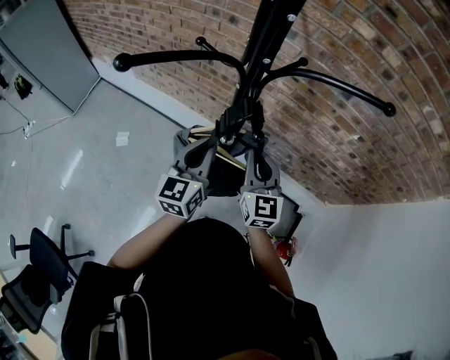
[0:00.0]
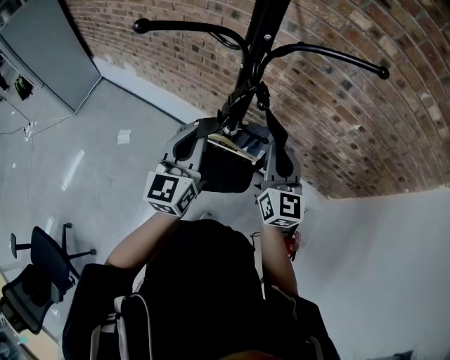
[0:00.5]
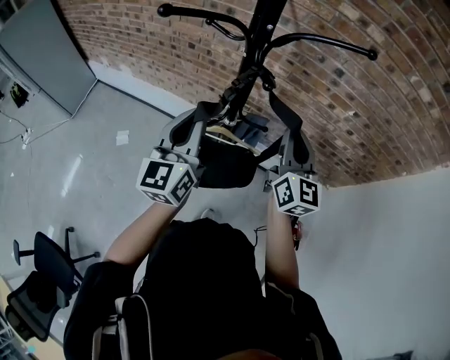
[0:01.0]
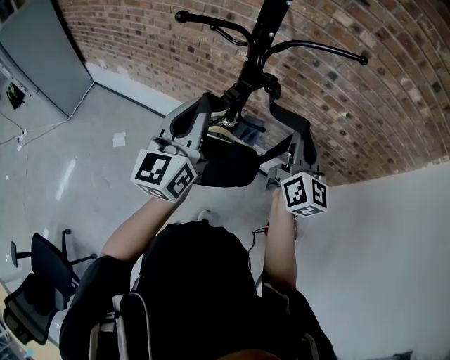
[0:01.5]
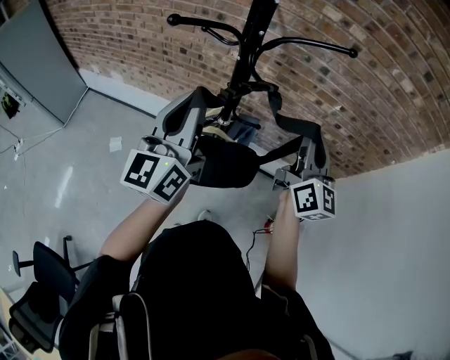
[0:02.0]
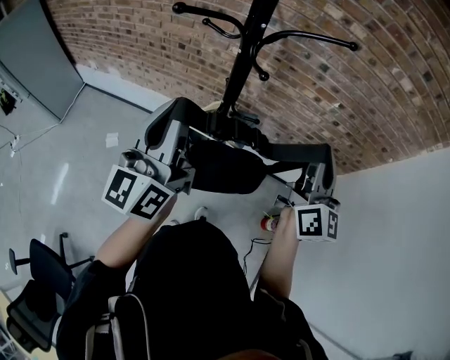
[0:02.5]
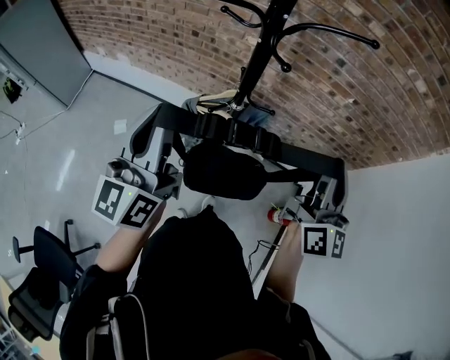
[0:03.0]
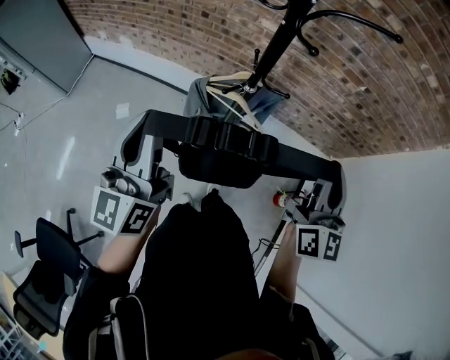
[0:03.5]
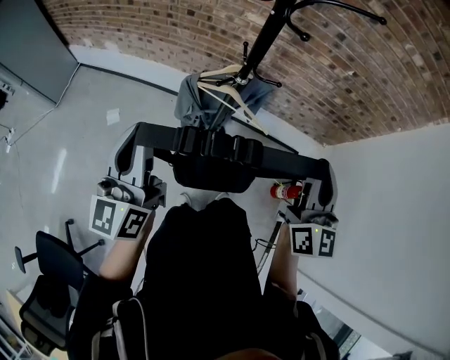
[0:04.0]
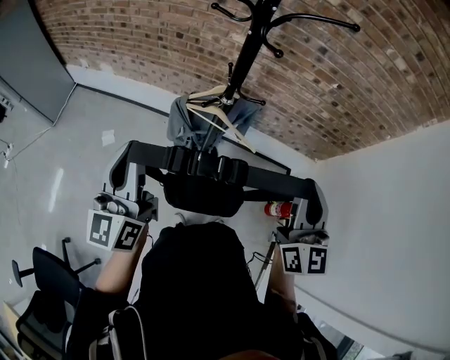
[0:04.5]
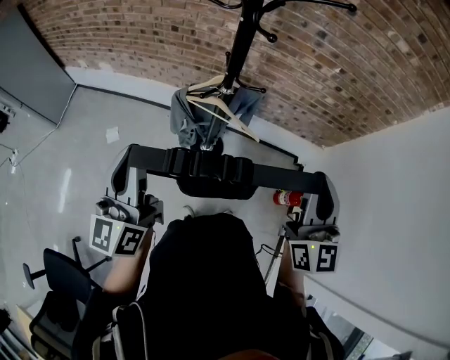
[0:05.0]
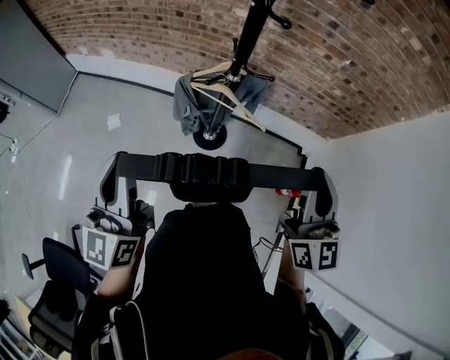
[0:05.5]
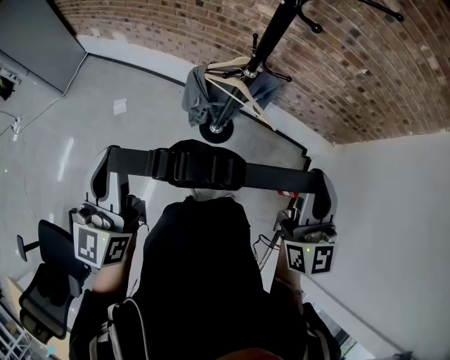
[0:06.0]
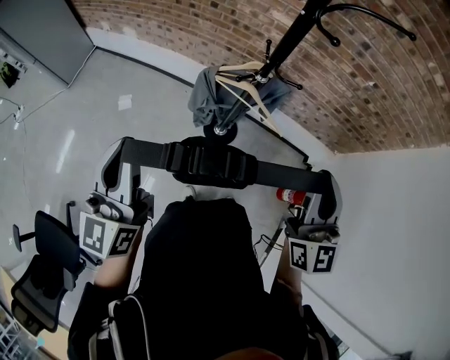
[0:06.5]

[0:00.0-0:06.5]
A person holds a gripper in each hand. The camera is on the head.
0:00.0 to 0:02.0: The right gripper is displaced upward, to the right and backward by roughly 20 cm, and changes its angle by approximately 30 degrees. The left gripper travels upward and backward by about 20 cm, and swivels about 20 degrees.
0:02.0 to 0:04.5: The left gripper heads backward, to the left and downward, covering some 20 cm; the right gripper is displaced backward by some 20 cm.
0:04.5 to 0:06.5: The right gripper shifts by roughly 5 cm. Meanwhile the left gripper shifts by some 5 cm.

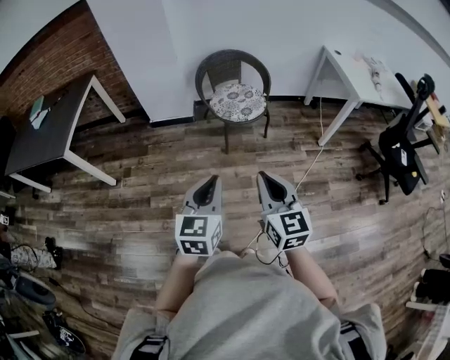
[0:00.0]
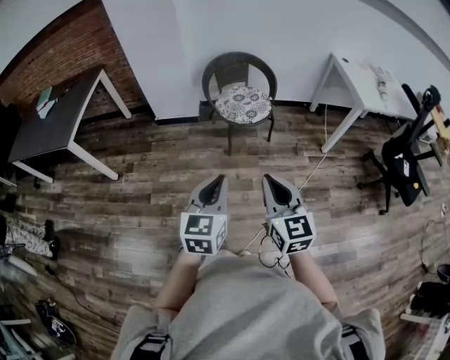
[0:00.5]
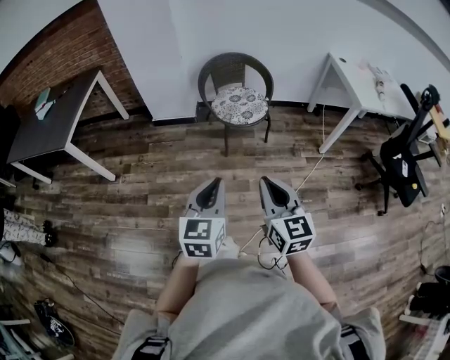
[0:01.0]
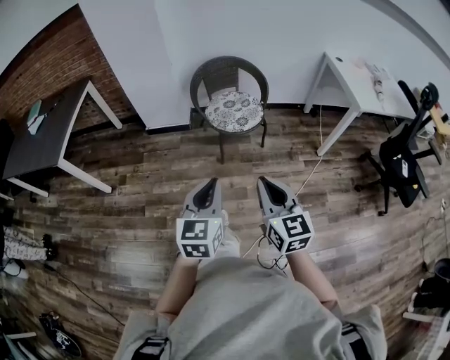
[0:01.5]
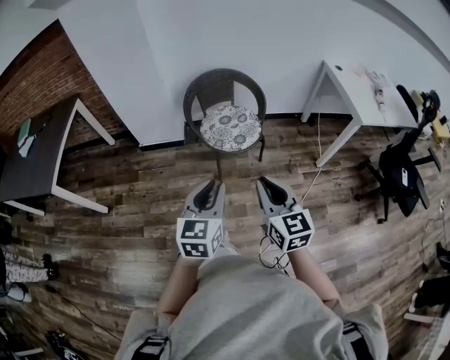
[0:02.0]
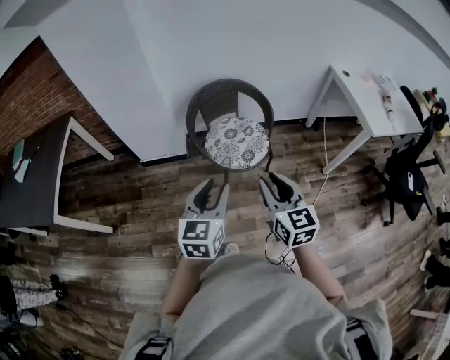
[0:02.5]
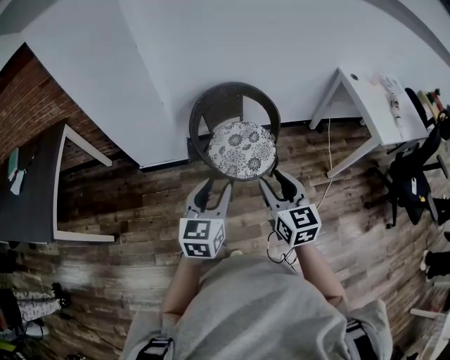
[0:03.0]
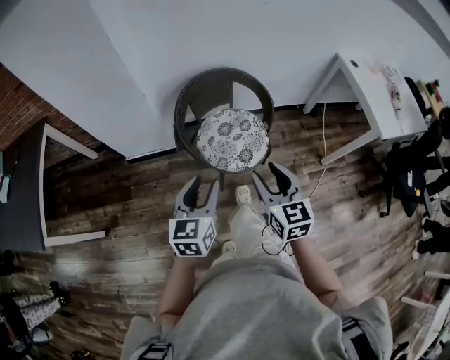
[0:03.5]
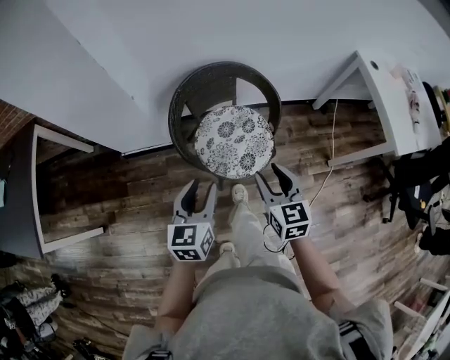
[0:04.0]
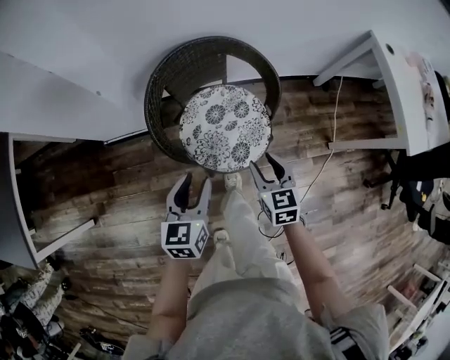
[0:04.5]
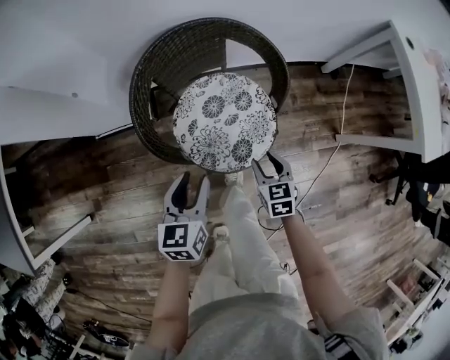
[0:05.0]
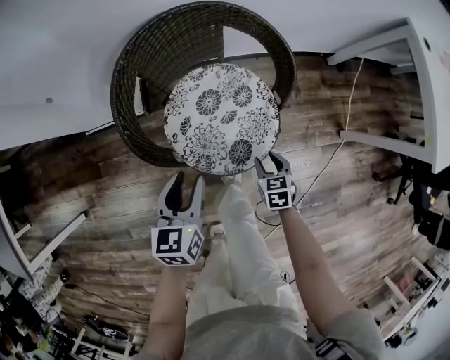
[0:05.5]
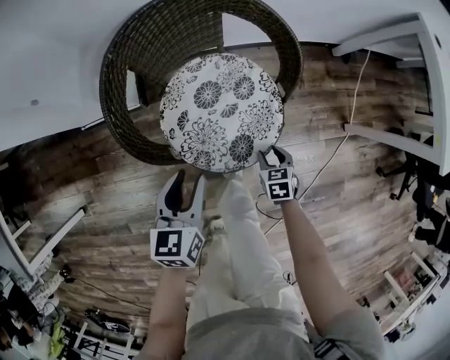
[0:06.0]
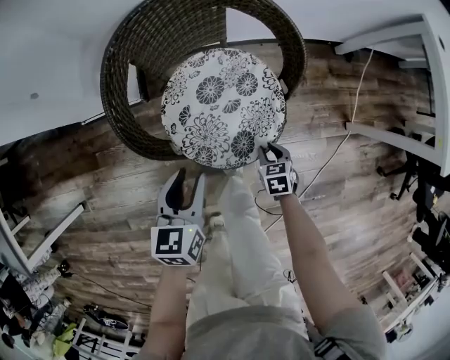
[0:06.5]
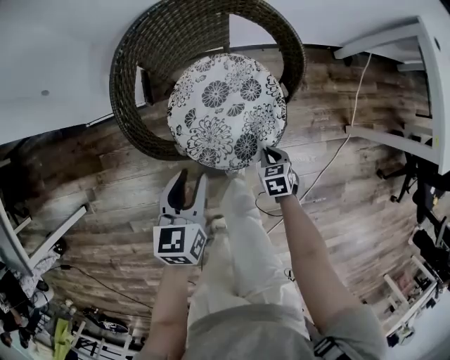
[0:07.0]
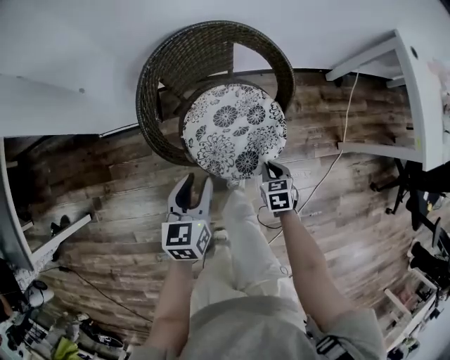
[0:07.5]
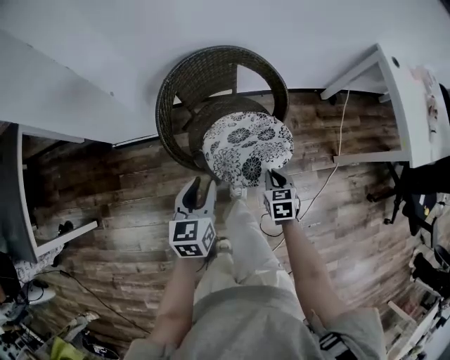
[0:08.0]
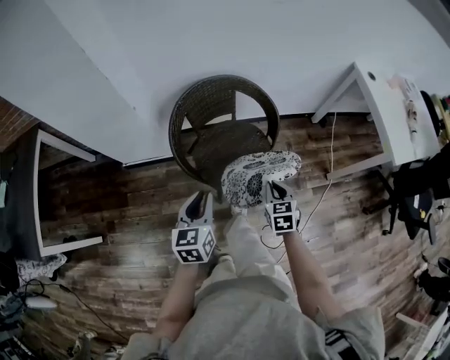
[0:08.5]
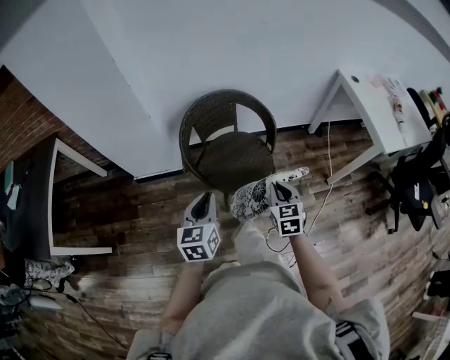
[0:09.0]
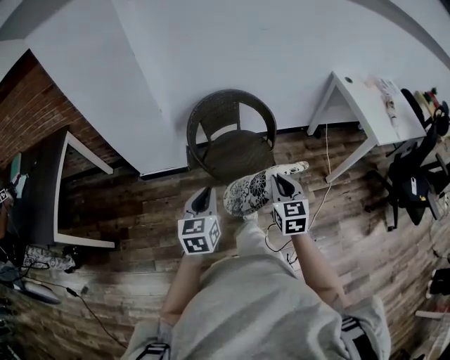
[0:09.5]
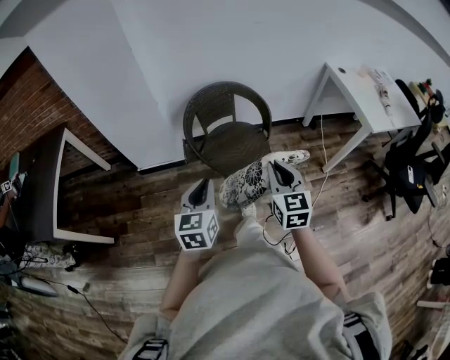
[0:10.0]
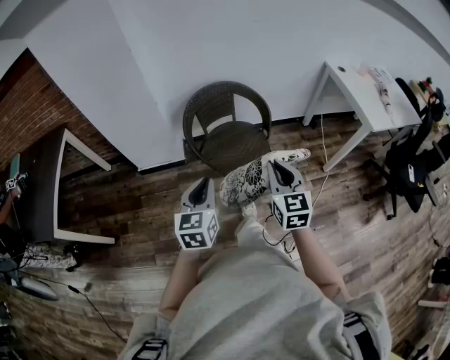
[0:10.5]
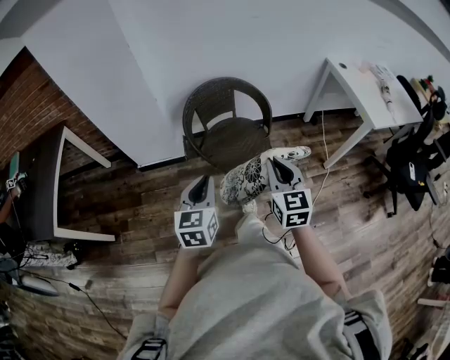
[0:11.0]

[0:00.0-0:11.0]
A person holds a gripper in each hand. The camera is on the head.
0:00.0 to 0:02.0: Both grippers travel together forward, some 20 cm.
0:02.0 to 0:03.5: The grippers both shift forward by some 30 cm. The right gripper opens its fingers. The left gripper opens up.
0:03.5 to 0:05.5: The left gripper is displaced downward and forward by approximately 35 cm. The right gripper heads downward, covering about 50 cm, and points its fingers about 40 degrees further downward.
0:05.5 to 0:07.5: The left gripper changes place by some 5 cm; the right gripper is displaced upward by roughly 5 cm, and closes.
0:07.5 to 0:09.0: The grippers both shift upward and backward by roughly 30 cm. The left gripper closes, while the right gripper turns by approximately 30 degrees.
0:09.0 to 0:11.0: The left gripper shifts roughly 15 cm backward and upward. Meanwhile the right gripper shifts approximately 20 cm upward and backward.

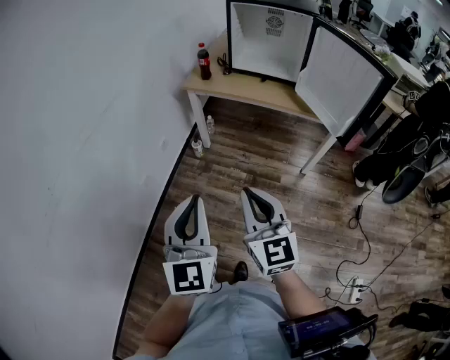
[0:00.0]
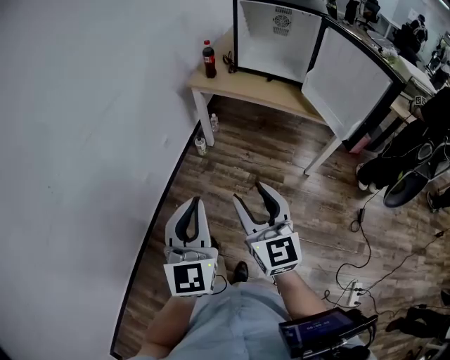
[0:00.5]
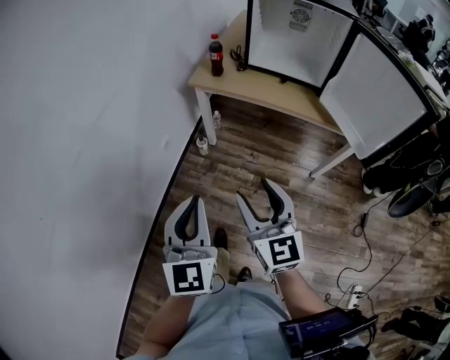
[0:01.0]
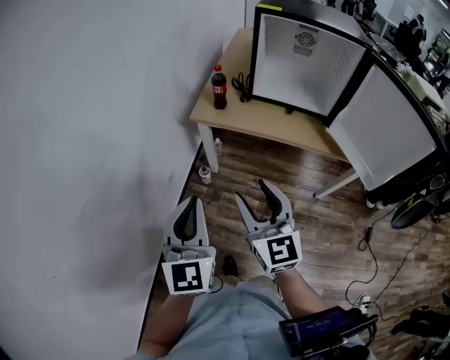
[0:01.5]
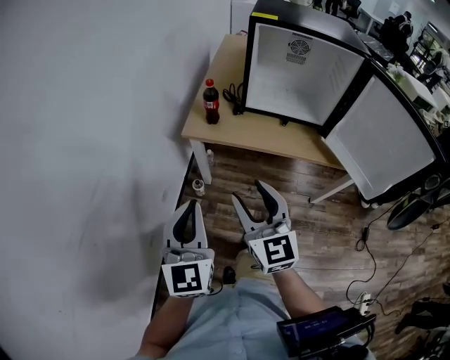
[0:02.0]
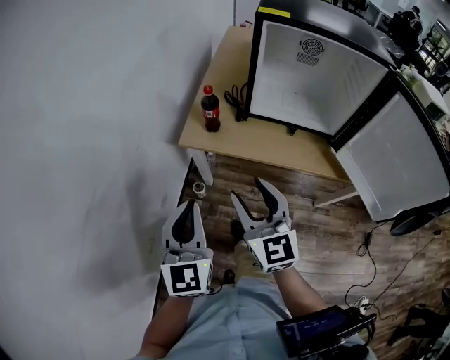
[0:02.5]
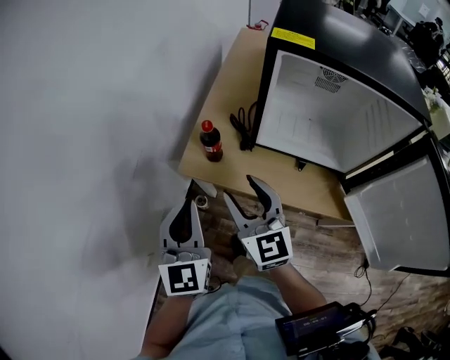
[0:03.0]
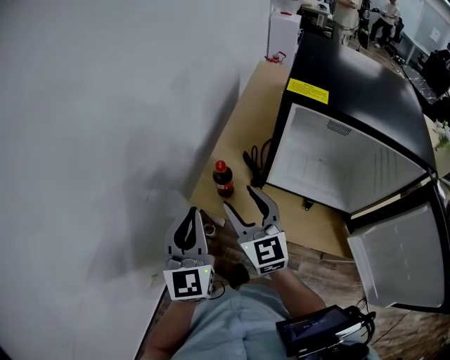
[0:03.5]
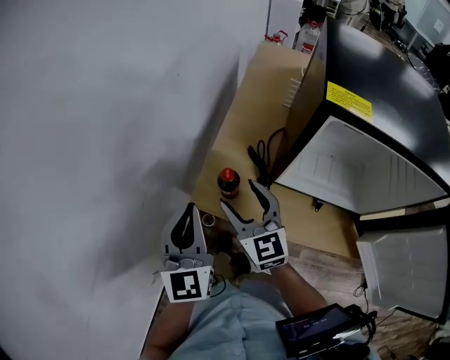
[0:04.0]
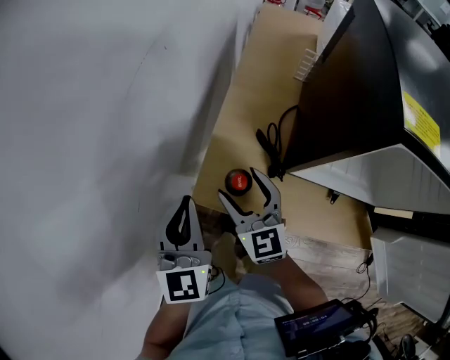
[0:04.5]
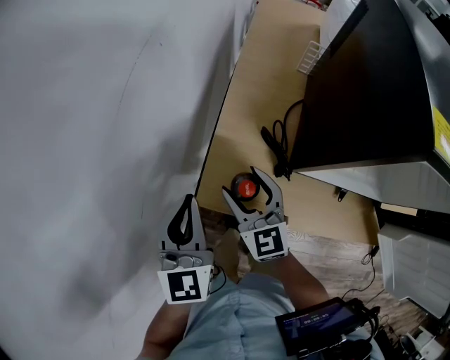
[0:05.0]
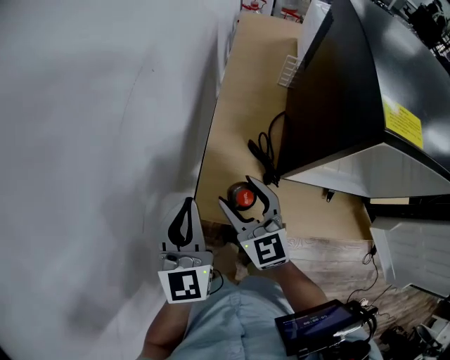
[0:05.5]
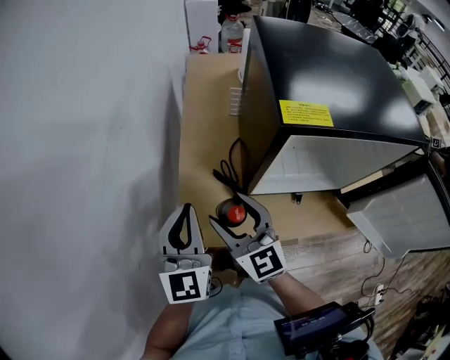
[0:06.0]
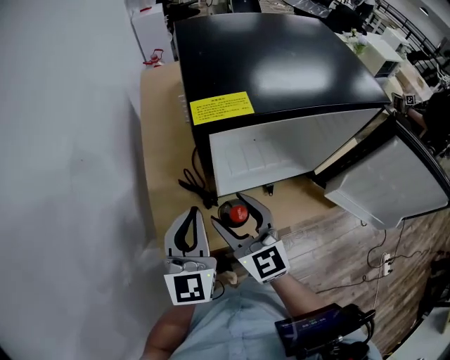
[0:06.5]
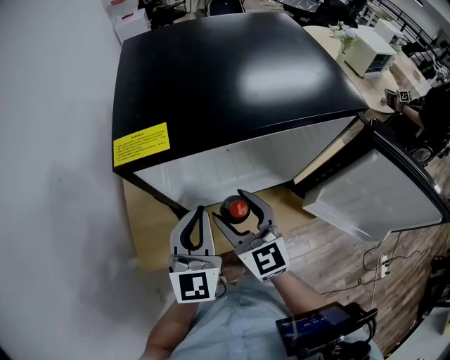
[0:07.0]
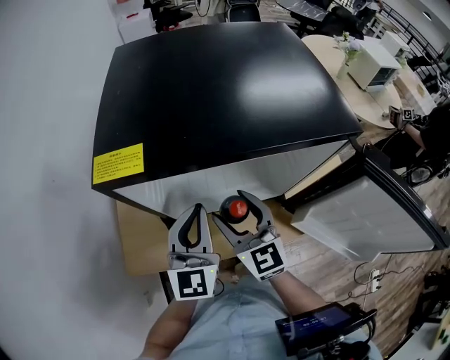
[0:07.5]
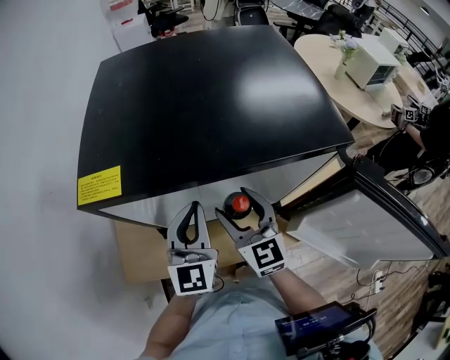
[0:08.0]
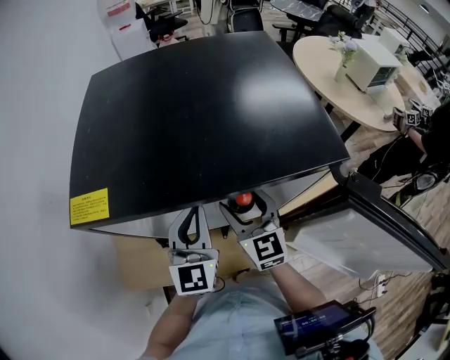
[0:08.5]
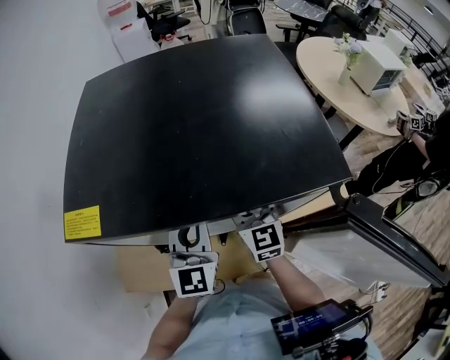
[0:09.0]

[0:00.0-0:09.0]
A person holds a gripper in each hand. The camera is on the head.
0:00.0 to 0:02.0: The grippers both shift forward by some 35 cm. The right gripper opens.
0:02.0 to 0:04.5: The two grippers travel together, forward, about 40 cm.
0:04.5 to 0:07.0: The right gripper moves some 30 cm, and swivels roughly 30 degrees, while the left gripper moves approximately 30 cm, and rotates about 40 degrees.
0:07.0 to 0:09.0: Both grippers travel together to the right and forward, some 20 cm.
